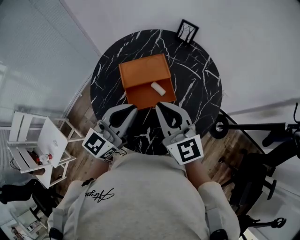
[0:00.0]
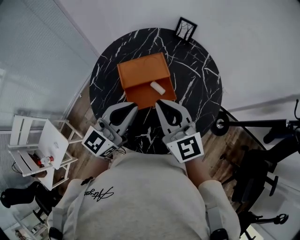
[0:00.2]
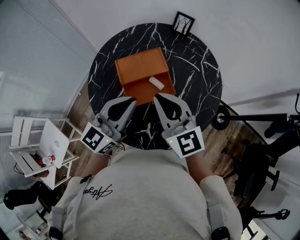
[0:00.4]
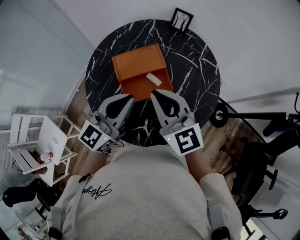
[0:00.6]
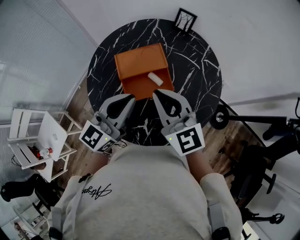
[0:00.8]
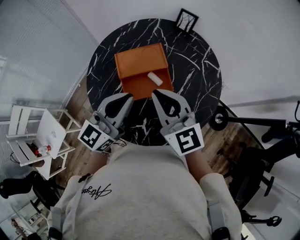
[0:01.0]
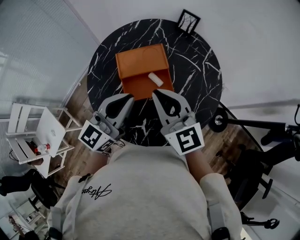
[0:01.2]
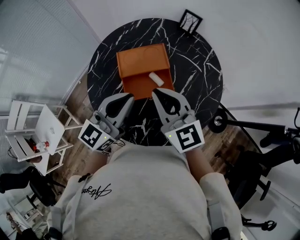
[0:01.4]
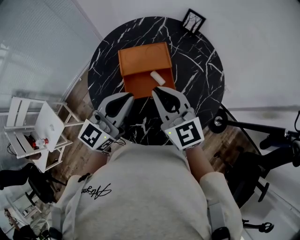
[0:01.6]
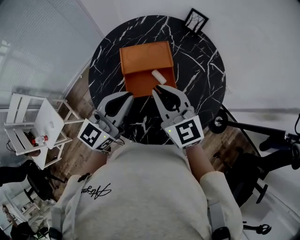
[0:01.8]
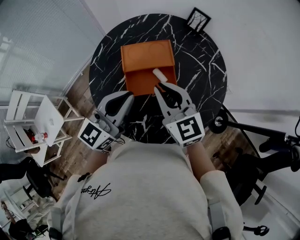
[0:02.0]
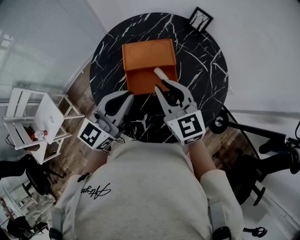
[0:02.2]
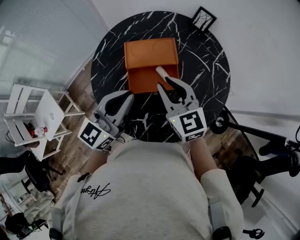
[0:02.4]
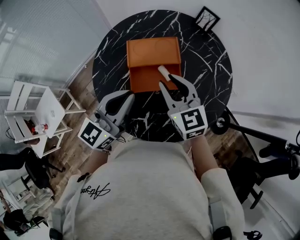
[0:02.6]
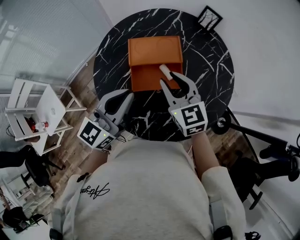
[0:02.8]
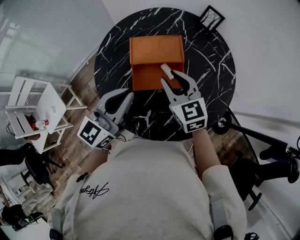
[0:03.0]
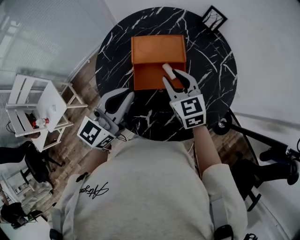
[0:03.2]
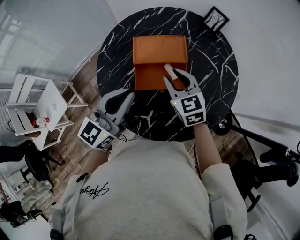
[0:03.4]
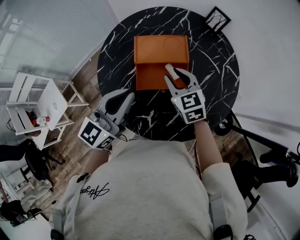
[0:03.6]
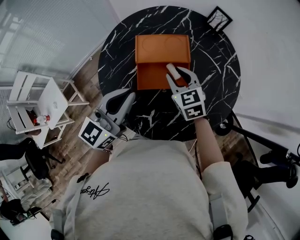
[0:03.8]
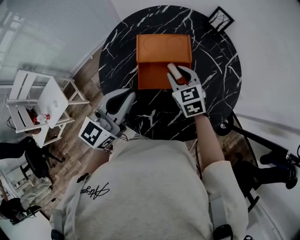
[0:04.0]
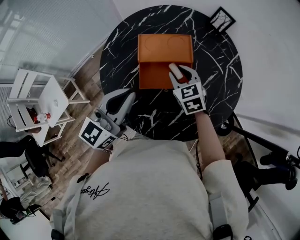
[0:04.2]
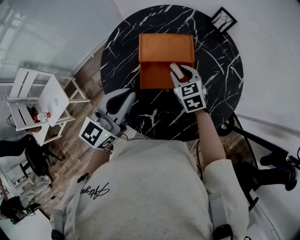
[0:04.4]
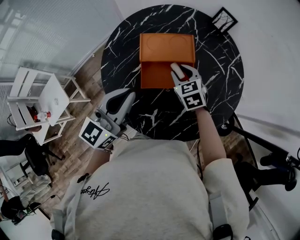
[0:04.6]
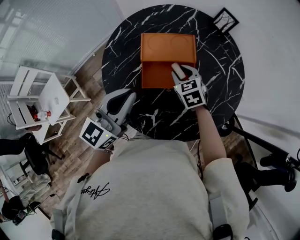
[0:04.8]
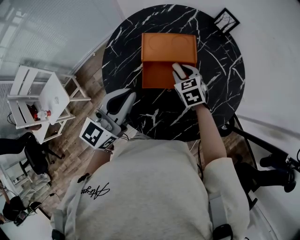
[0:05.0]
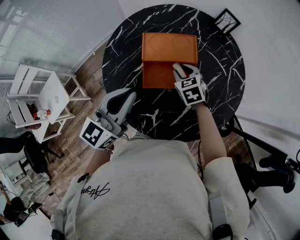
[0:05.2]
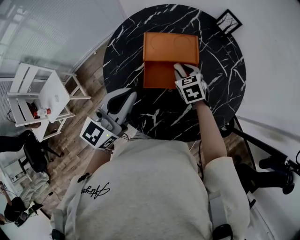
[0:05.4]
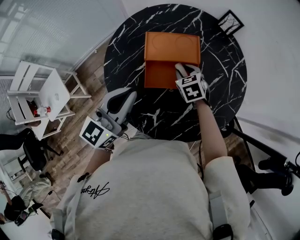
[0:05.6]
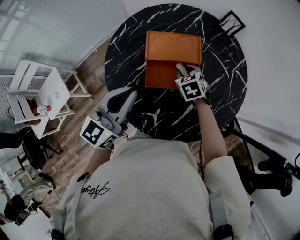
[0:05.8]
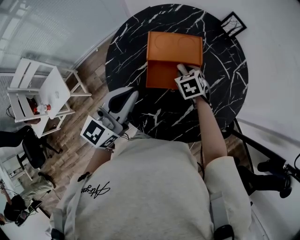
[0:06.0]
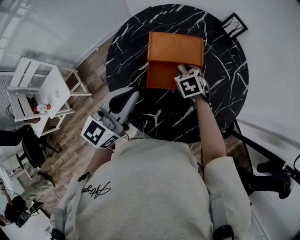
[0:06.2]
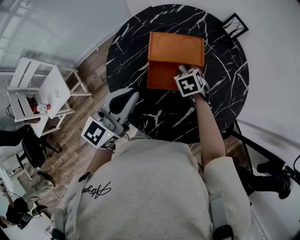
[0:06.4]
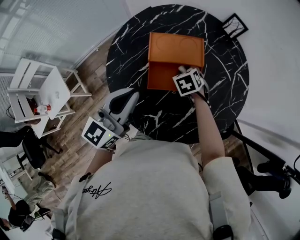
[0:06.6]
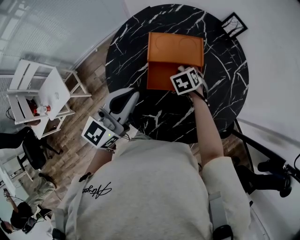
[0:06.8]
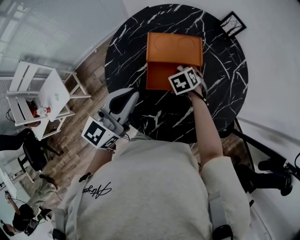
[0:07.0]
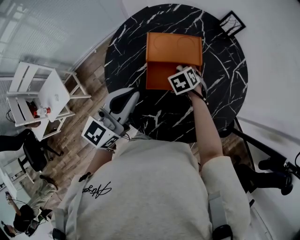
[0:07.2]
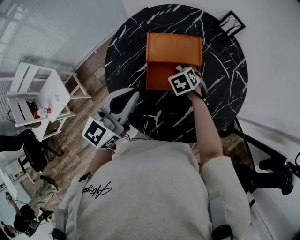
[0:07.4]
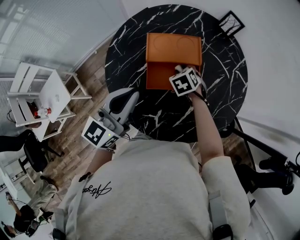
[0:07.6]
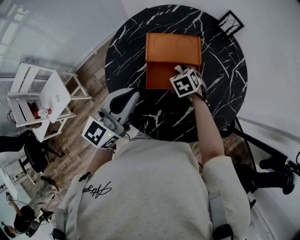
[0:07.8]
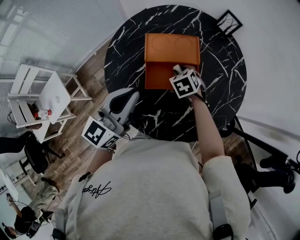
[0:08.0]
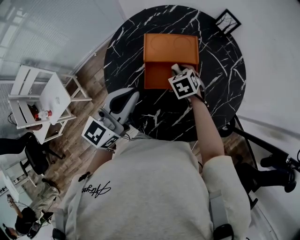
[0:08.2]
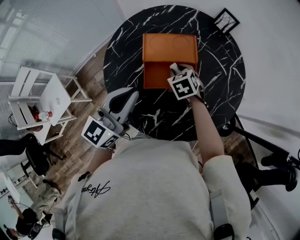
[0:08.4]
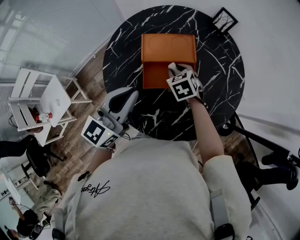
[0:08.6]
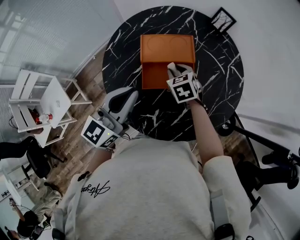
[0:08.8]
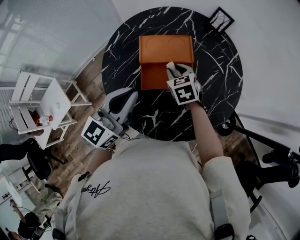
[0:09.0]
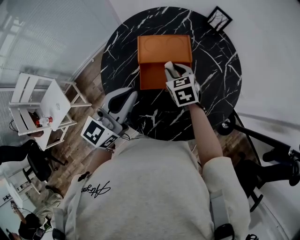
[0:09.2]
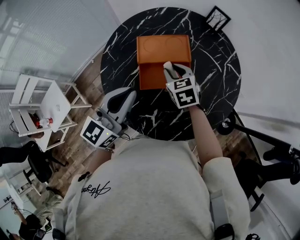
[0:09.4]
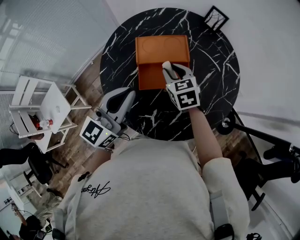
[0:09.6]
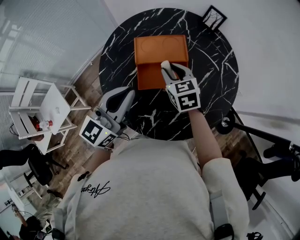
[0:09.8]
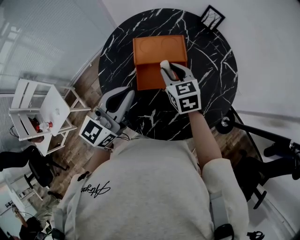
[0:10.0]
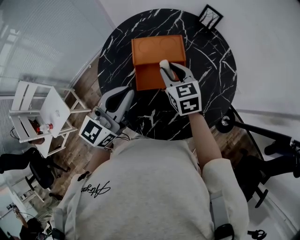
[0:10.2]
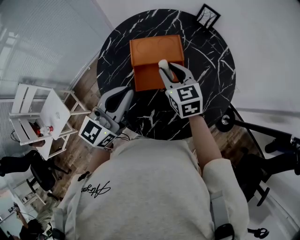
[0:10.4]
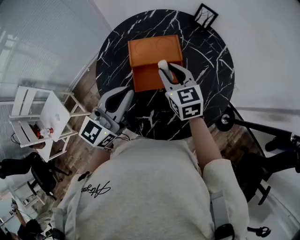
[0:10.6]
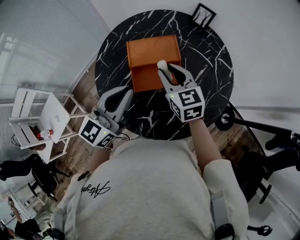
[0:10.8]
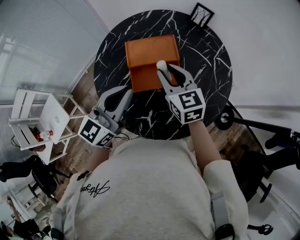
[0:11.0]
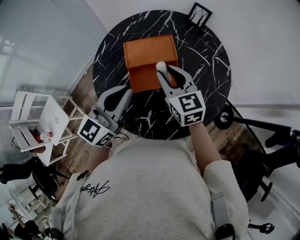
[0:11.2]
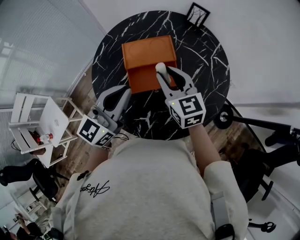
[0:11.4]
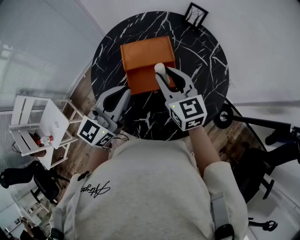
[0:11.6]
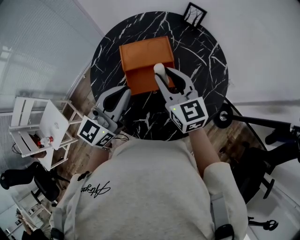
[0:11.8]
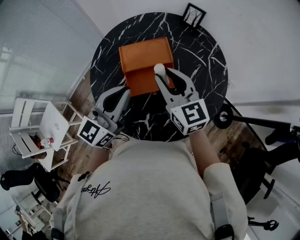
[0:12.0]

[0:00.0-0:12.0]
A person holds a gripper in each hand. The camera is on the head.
0:00.0 to 0:01.6: There are only small adjustments of the grippers.
0:01.6 to 0:03.0: The right gripper shifts some 10 cm downward, and opens.
0:03.0 to 0:04.4: The right gripper is displaced downward by approximately 10 cm.
0:04.4 to 0:06.0: The right gripper moves downward, about 5 cm.
0:06.0 to 0:07.6: The grippers move only a little.
0:07.6 to 0:09.0: The right gripper goes approximately 5 cm upward.
0:09.0 to 0:10.4: The right gripper is displaced upward by roughly 10 cm, and swivels approximately 20 degrees.
0:10.4 to 0:12.0: The right gripper is displaced upward by about 10 cm.

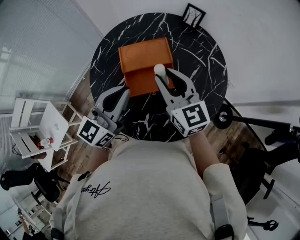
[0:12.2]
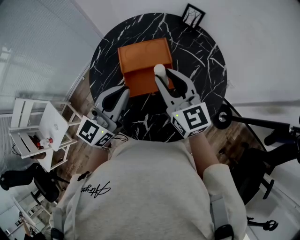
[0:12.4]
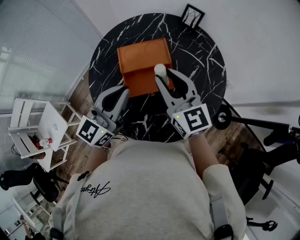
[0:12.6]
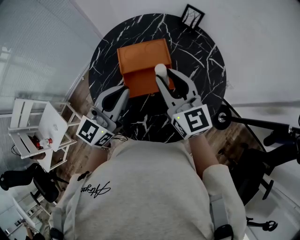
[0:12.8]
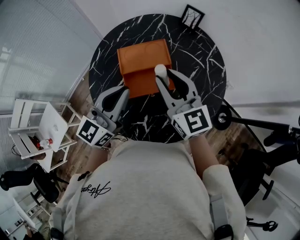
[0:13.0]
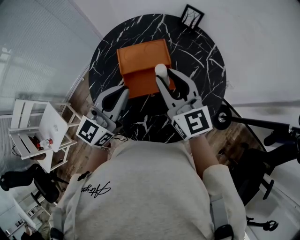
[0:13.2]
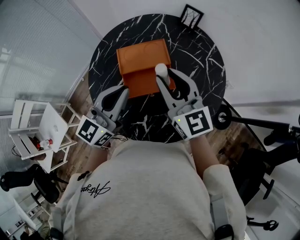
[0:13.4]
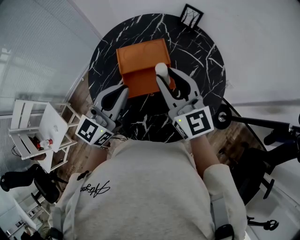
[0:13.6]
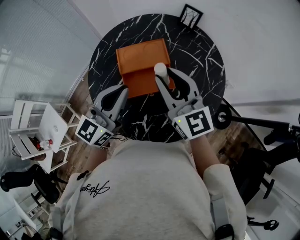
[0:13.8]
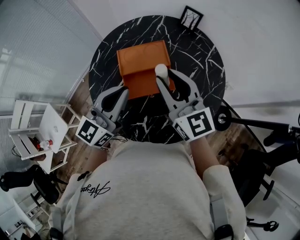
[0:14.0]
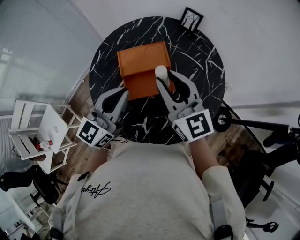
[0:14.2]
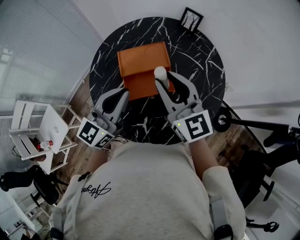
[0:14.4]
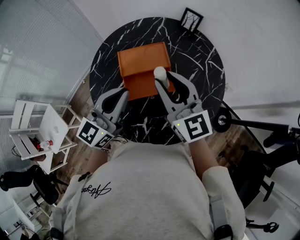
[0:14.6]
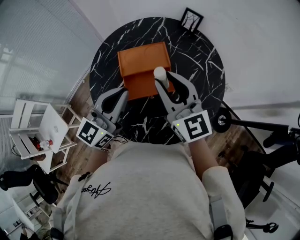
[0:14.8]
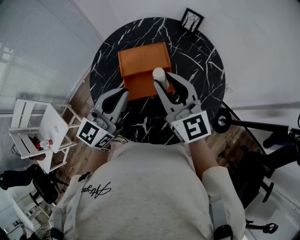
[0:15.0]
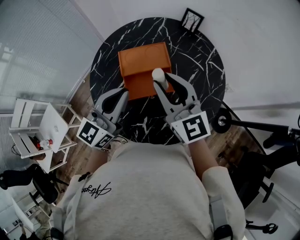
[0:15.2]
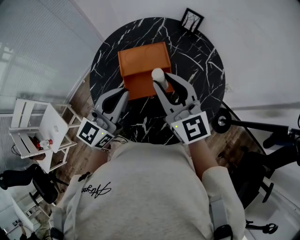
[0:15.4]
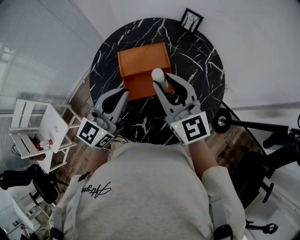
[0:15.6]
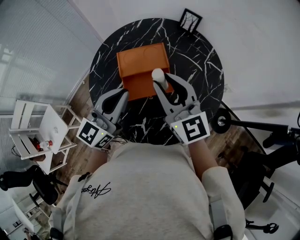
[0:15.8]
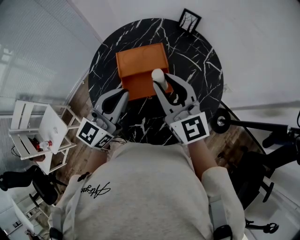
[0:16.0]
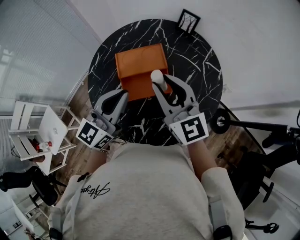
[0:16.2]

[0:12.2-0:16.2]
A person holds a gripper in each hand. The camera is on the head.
0:12.2 to 0:13.6: There are only small adjustments of the grippers.
0:13.6 to 0:14.8: The two grippers keep their place.
0:14.8 to 0:16.2: Neither gripper changes place.

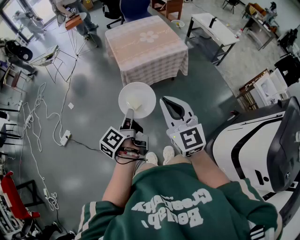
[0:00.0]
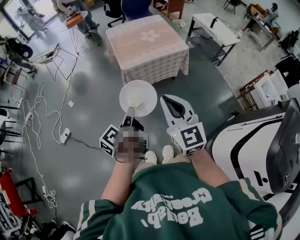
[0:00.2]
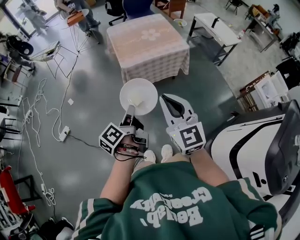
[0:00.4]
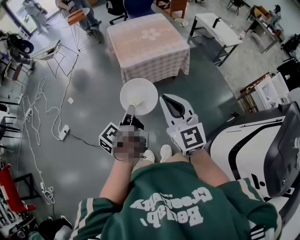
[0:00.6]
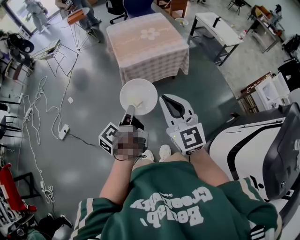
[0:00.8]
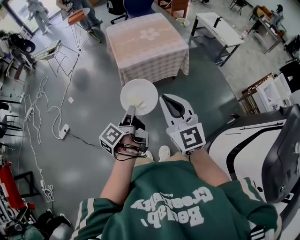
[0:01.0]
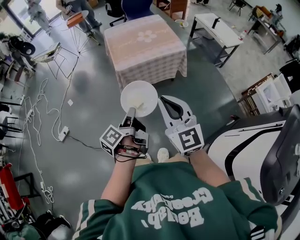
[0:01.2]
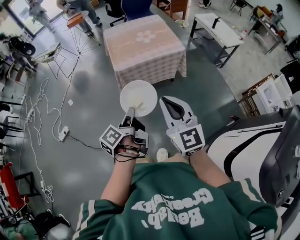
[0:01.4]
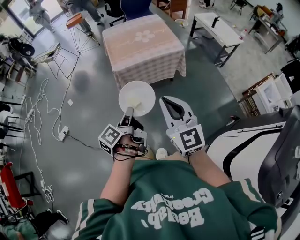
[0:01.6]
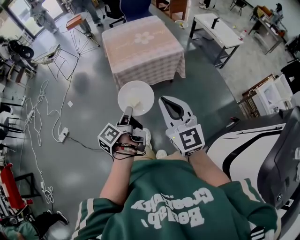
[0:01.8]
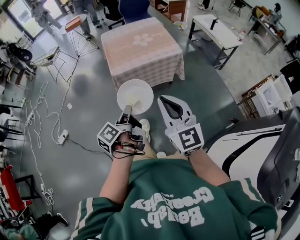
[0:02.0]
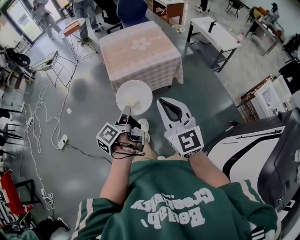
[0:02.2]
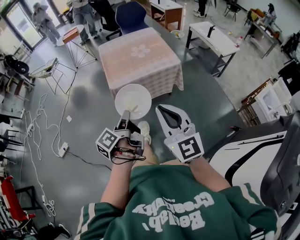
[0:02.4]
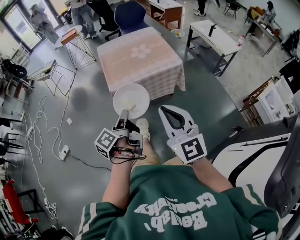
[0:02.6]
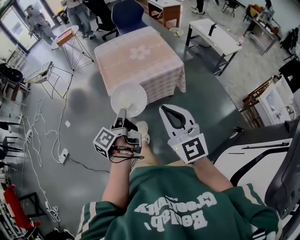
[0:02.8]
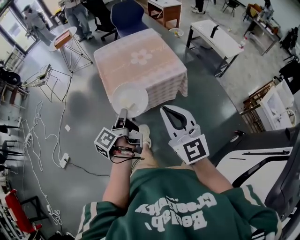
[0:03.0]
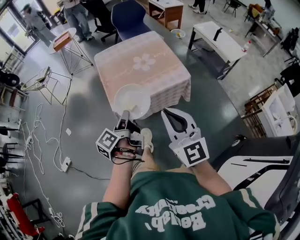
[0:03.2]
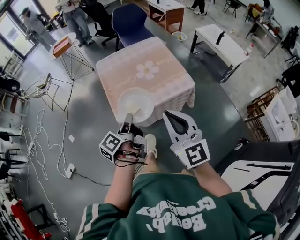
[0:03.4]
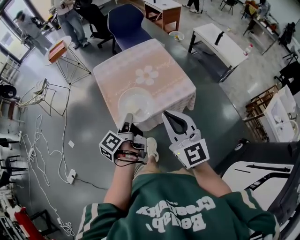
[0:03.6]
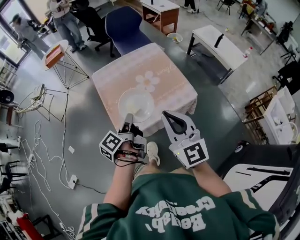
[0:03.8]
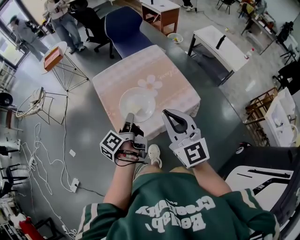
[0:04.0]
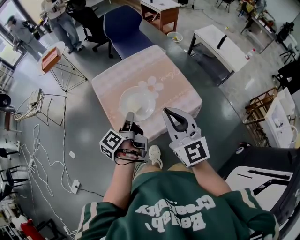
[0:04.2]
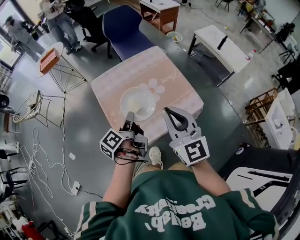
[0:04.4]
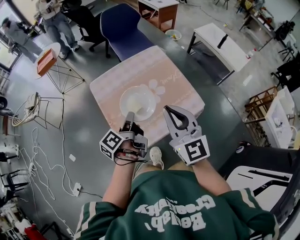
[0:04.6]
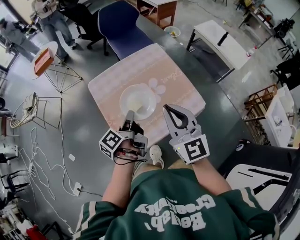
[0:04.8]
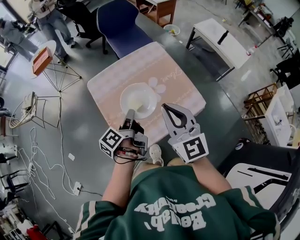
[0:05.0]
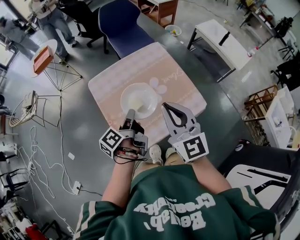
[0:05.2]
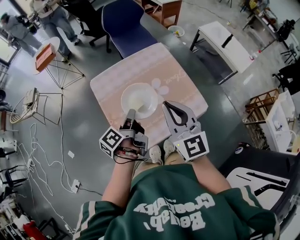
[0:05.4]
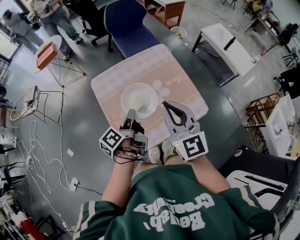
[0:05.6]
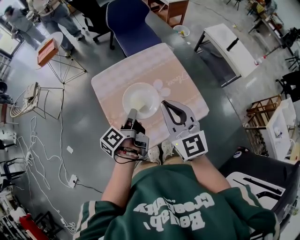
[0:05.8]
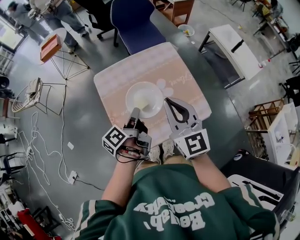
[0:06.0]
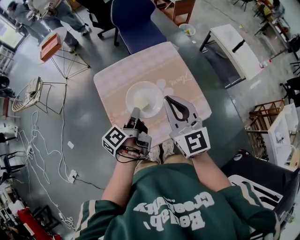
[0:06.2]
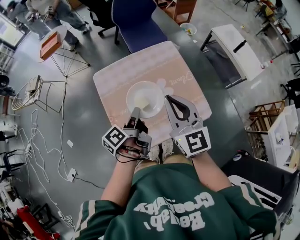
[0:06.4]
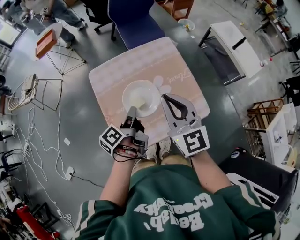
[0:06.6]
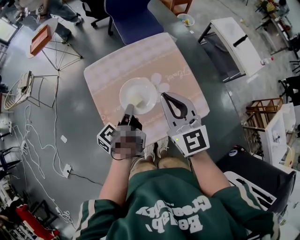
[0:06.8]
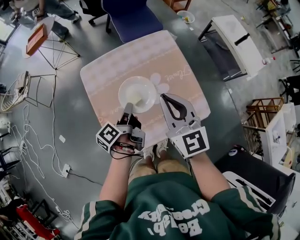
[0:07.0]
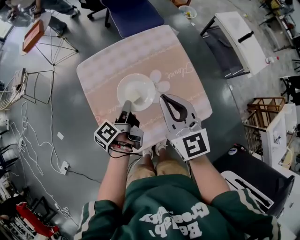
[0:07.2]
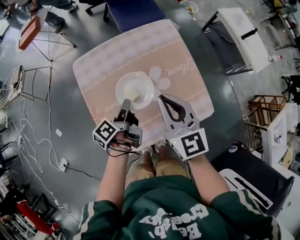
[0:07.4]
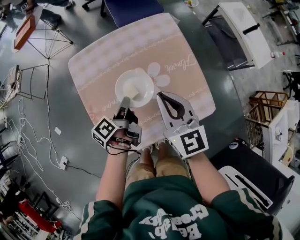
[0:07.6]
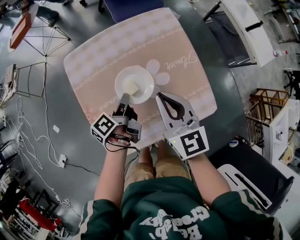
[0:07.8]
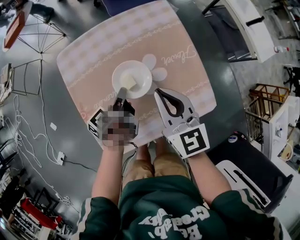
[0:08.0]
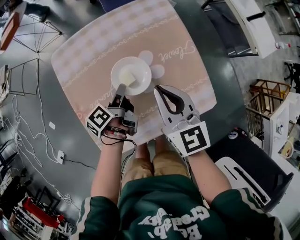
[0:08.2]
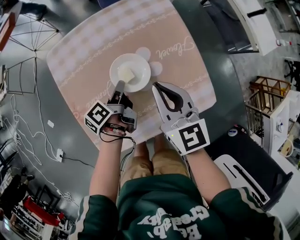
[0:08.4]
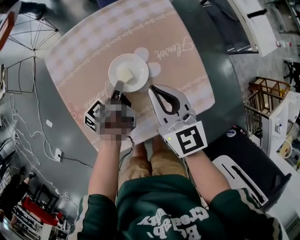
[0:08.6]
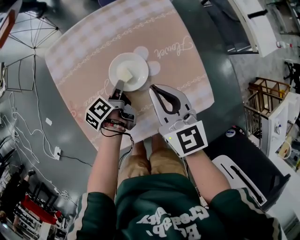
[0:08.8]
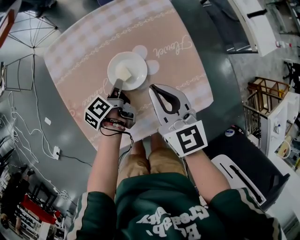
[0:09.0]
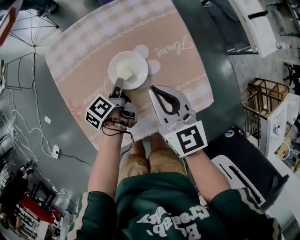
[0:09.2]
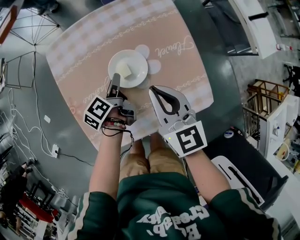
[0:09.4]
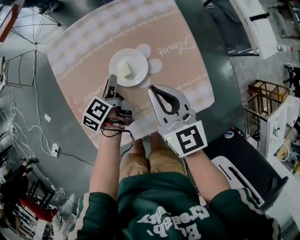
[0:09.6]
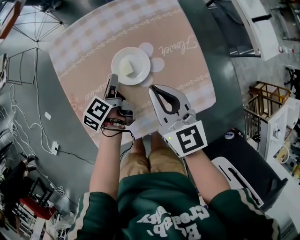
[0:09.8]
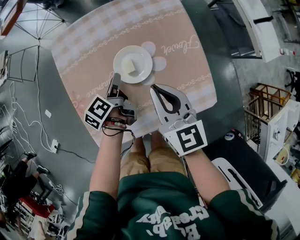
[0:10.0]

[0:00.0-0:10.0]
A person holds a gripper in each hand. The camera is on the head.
0:00.0 to 0:01.4: The right gripper ends up some 10 cm from where it was.
0:01.4 to 0:02.8: The right gripper moves roughly 15 cm.
0:02.8 to 0:04.2: The right gripper moves roughly 35 cm.
0:04.2 to 0:05.8: The right gripper changes place by about 15 cm.
0:05.8 to 0:07.2: The right gripper shifts some 10 cm downward.
0:07.2 to 0:08.6: The right gripper heads downward, covering approximately 15 cm.
